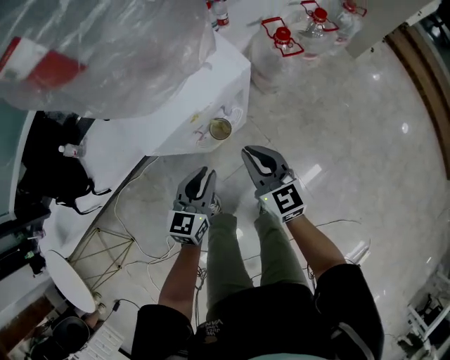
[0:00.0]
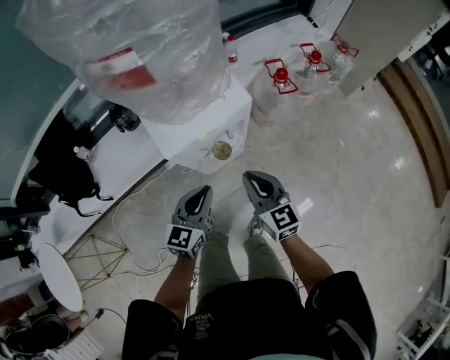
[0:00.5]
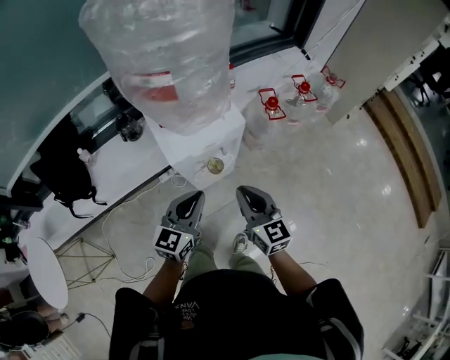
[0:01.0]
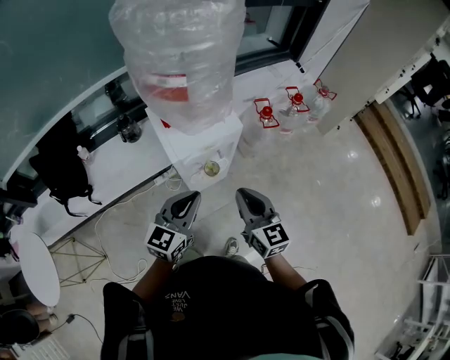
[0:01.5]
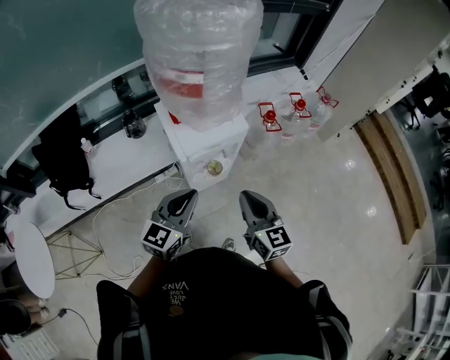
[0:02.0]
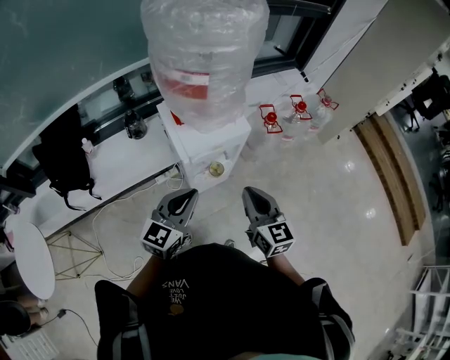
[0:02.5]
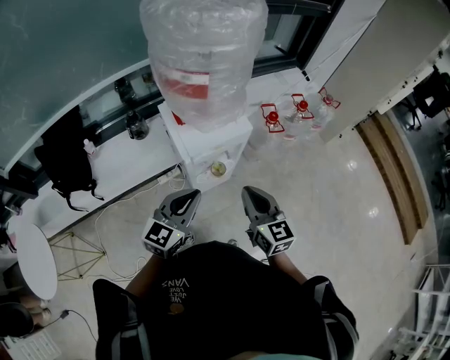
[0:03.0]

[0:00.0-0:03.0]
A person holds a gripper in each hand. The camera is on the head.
0:00.0 to 0:01.5: The right gripper moves upward and backward, approximately 25 cm. Meanwhile the left gripper travels upward by roughly 25 cm.
0:01.5 to 0:03.0: The grippers make only small movements.

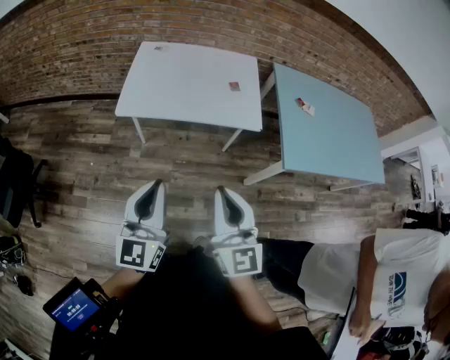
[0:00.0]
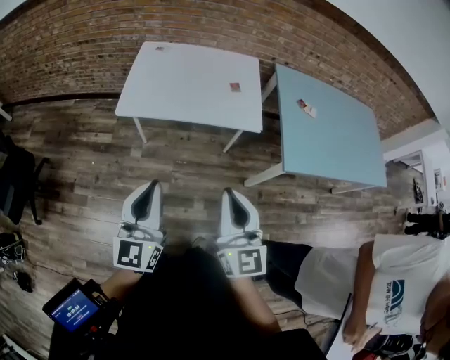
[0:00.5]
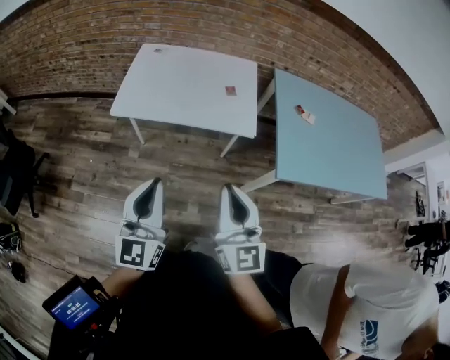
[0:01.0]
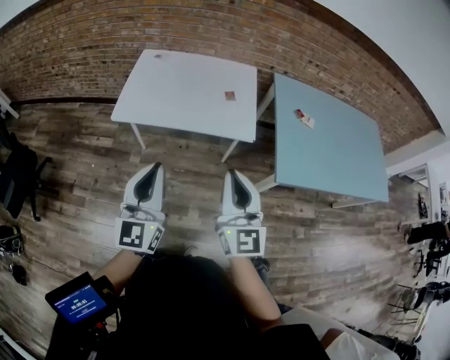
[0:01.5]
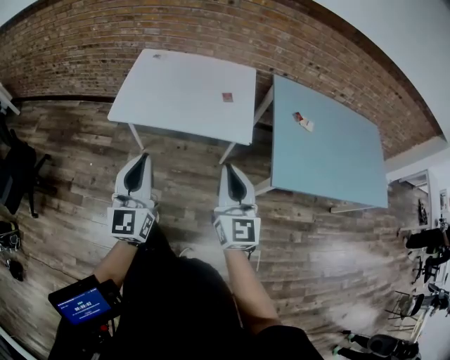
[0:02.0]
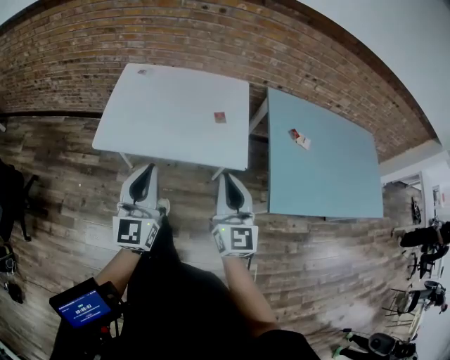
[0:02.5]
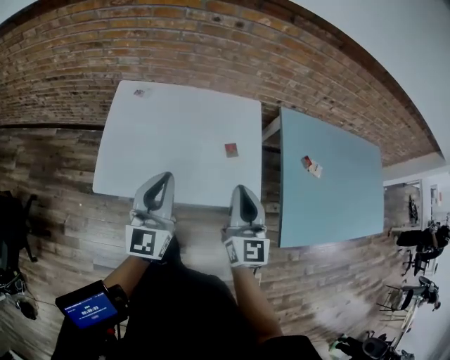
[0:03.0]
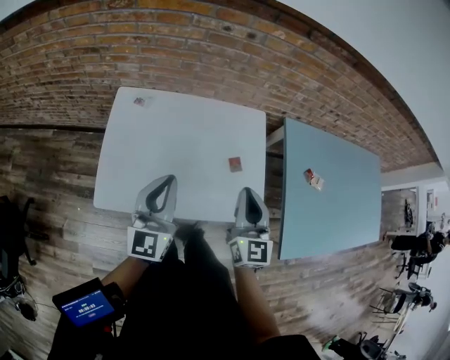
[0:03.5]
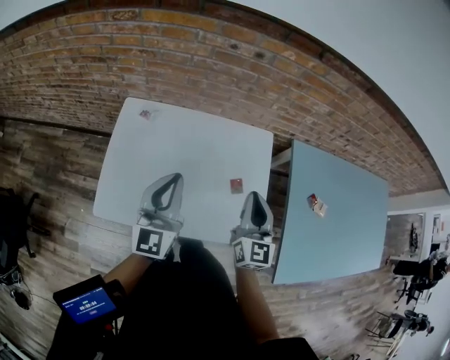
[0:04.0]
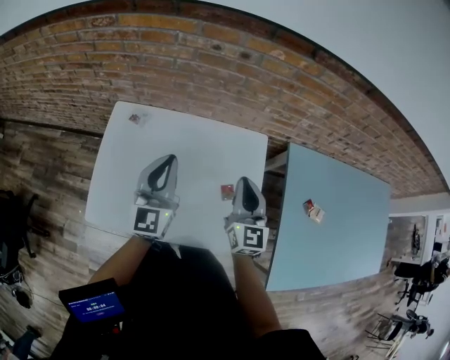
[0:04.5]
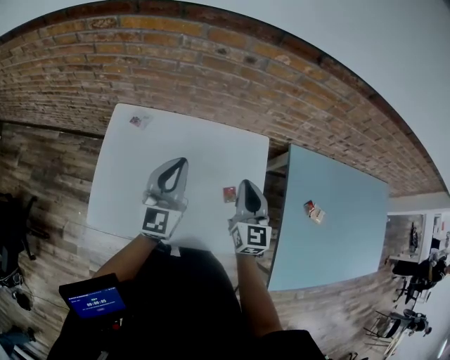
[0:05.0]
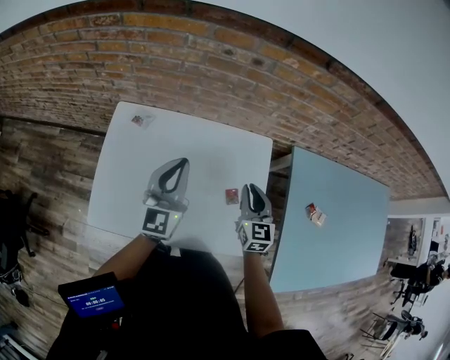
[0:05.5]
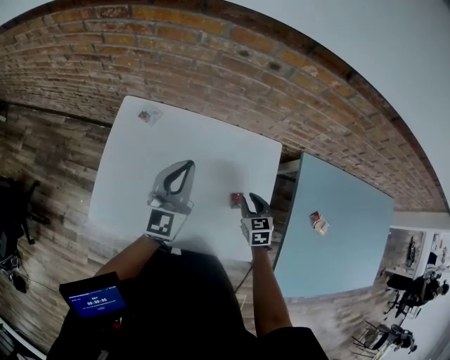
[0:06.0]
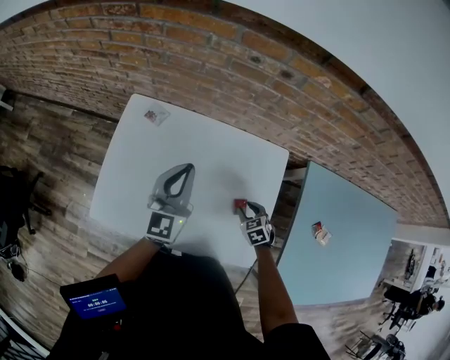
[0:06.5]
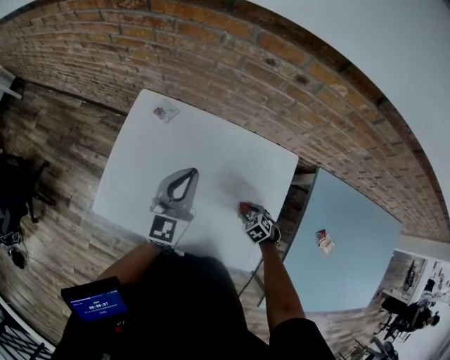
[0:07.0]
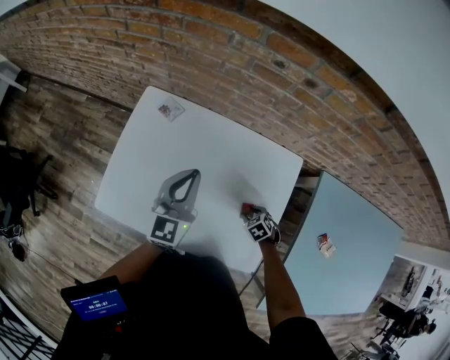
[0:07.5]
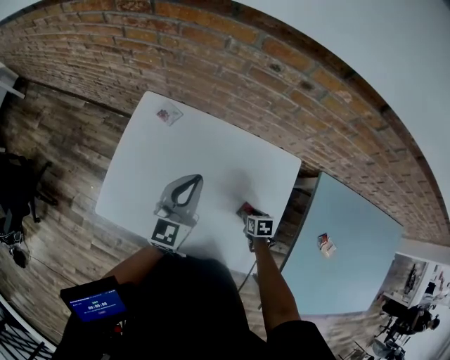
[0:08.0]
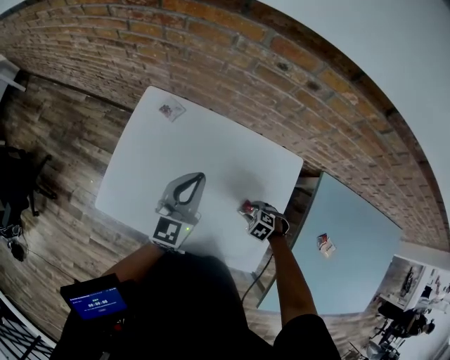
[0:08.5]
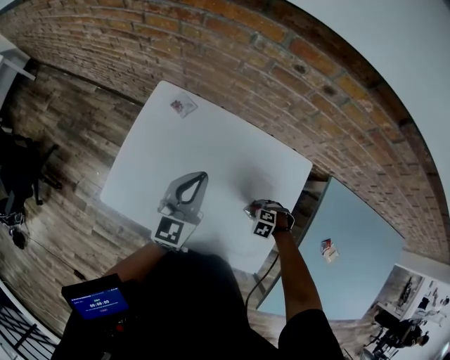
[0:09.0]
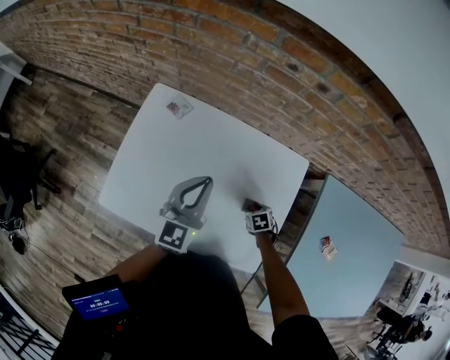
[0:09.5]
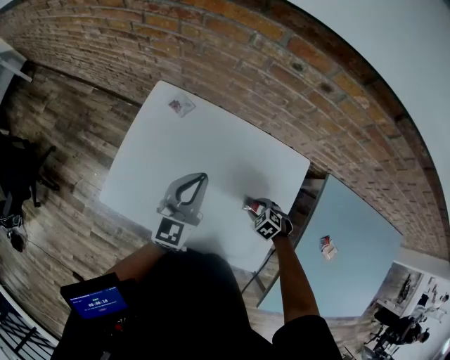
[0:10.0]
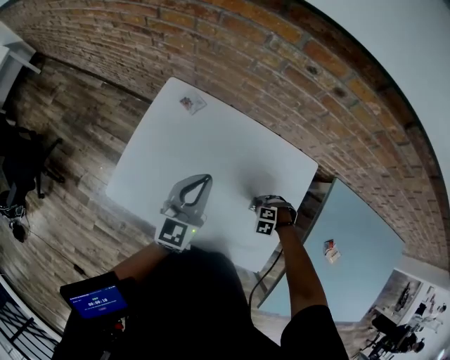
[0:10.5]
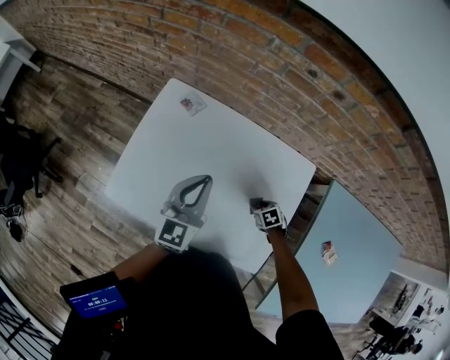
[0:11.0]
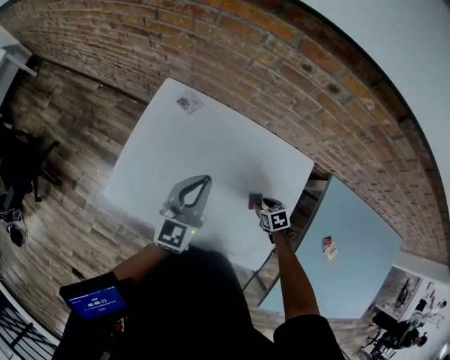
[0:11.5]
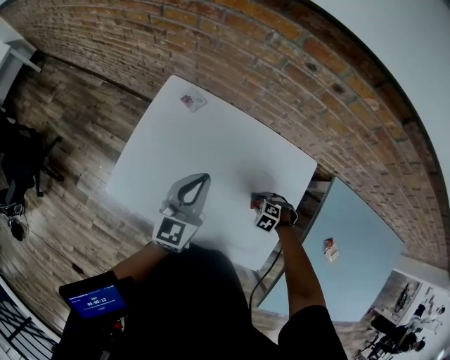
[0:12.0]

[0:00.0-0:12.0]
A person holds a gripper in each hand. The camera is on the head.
0:00.0 to 0:02.0: The left gripper heads forward and to the right, covering some 10 cm. Meanwhile the right gripper goes approximately 15 cm to the right and forward.
0:02.0 to 0:04.0: The two grippers travel together, forward, approximately 40 cm.
0:04.0 to 0:06.0: The left gripper shifts about 15 cm forward and downward. Meanwhile the right gripper moves downward and forward, approximately 25 cm, points its fingers roughly 40 degrees further downward, and opens its fingers.
0:06.0 to 0:08.0: The right gripper goes about 15 cm downward, and swivels approximately 30 degrees.
0:08.0 to 0:10.0: The right gripper rolls counterclockwise, seen from behind, by some 60 degrees.
0:10.0 to 0:12.0: The right gripper turns by roughly 20 degrees.

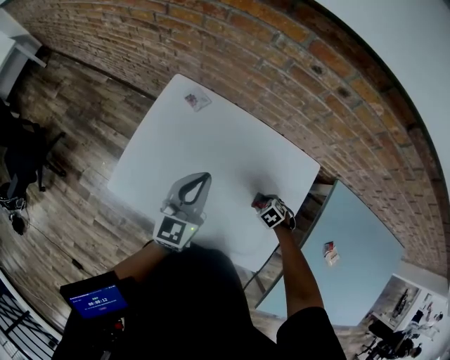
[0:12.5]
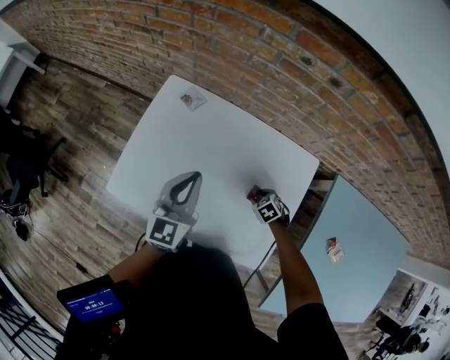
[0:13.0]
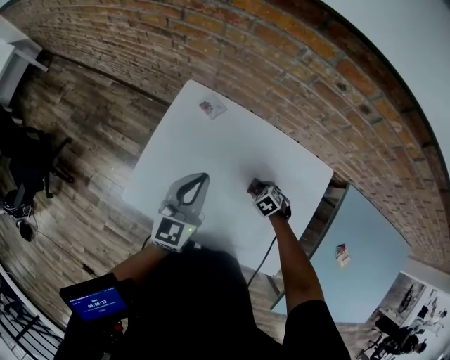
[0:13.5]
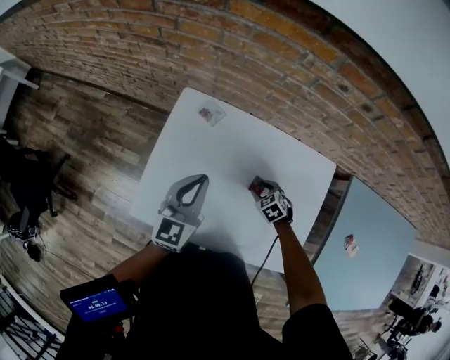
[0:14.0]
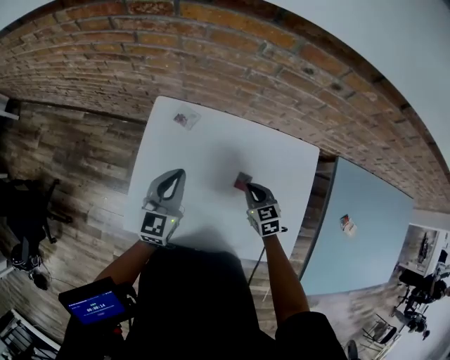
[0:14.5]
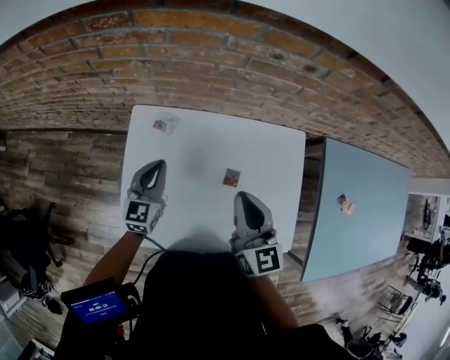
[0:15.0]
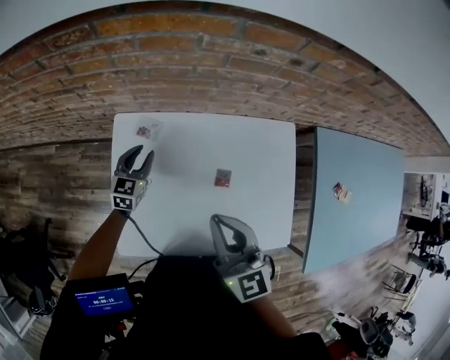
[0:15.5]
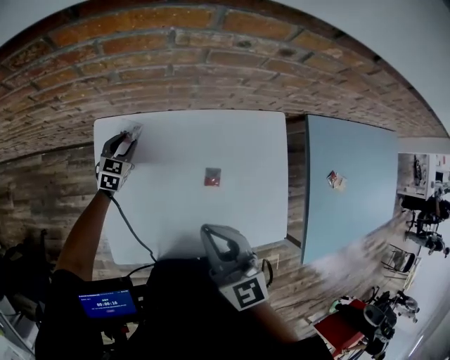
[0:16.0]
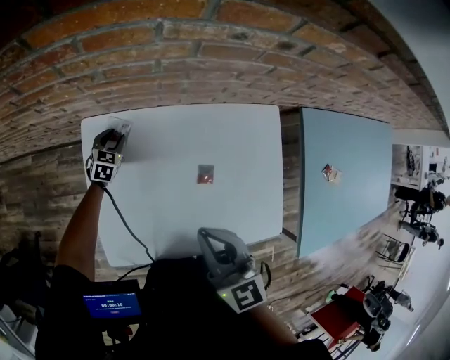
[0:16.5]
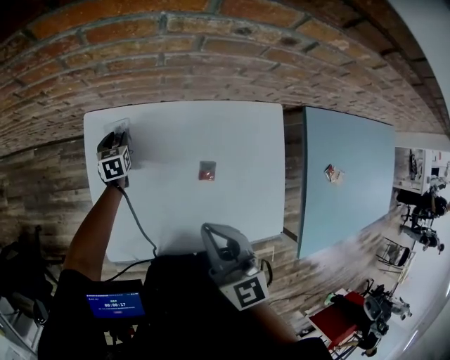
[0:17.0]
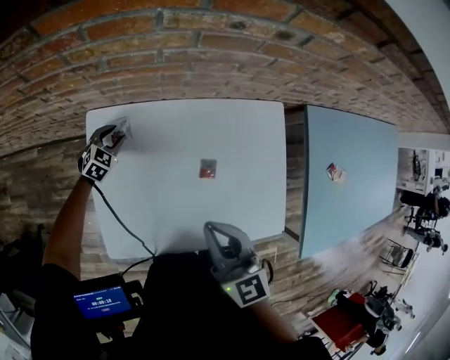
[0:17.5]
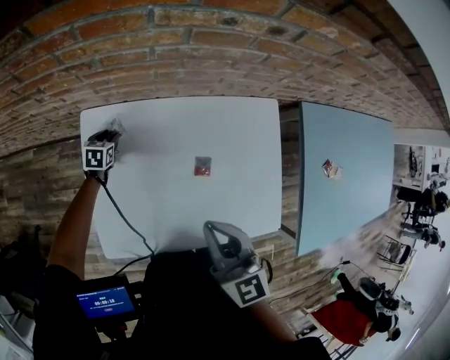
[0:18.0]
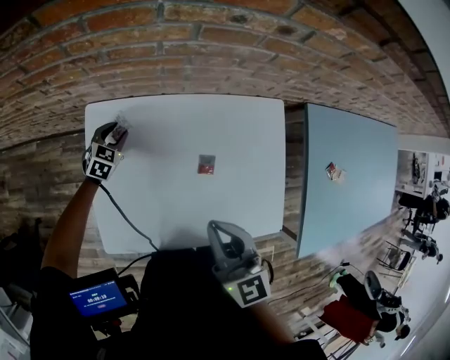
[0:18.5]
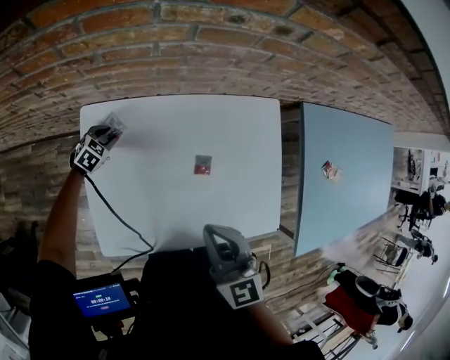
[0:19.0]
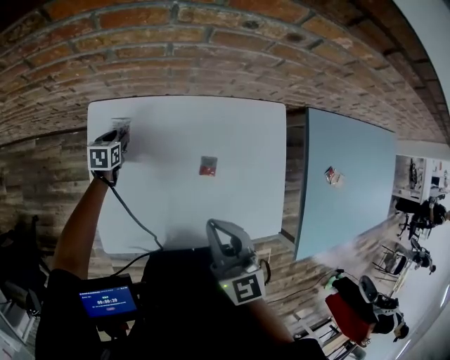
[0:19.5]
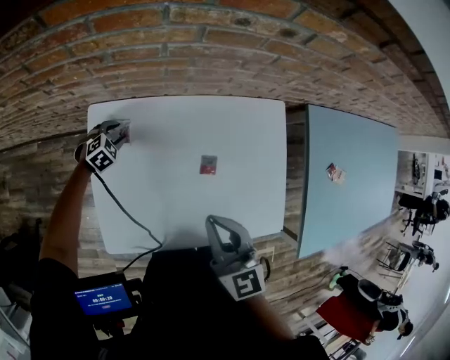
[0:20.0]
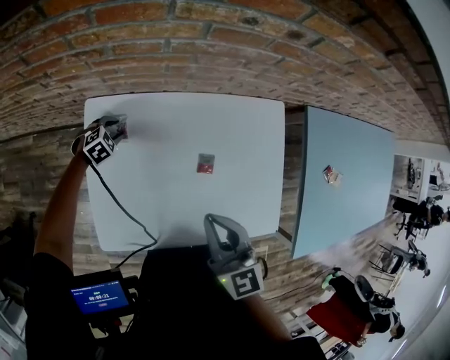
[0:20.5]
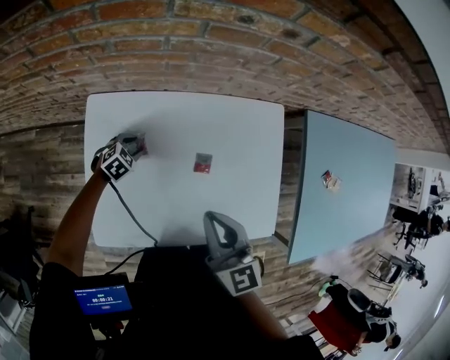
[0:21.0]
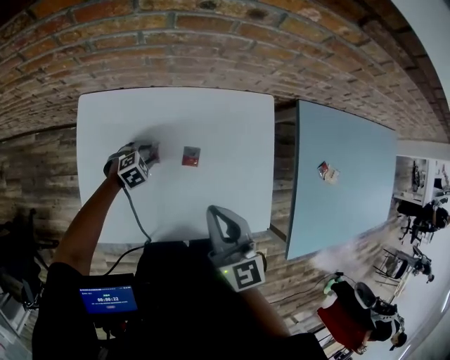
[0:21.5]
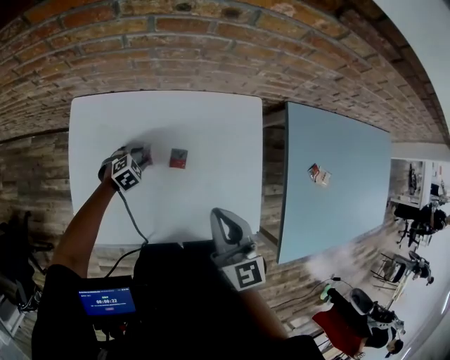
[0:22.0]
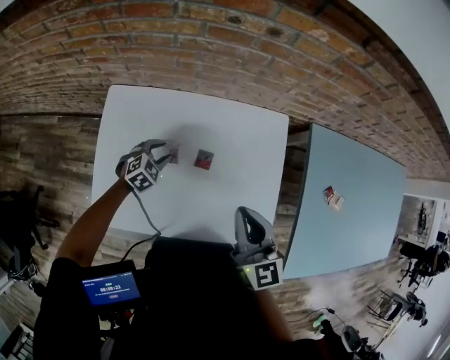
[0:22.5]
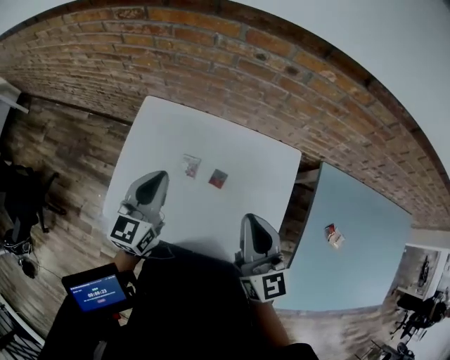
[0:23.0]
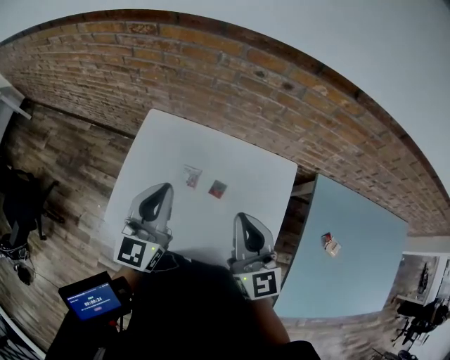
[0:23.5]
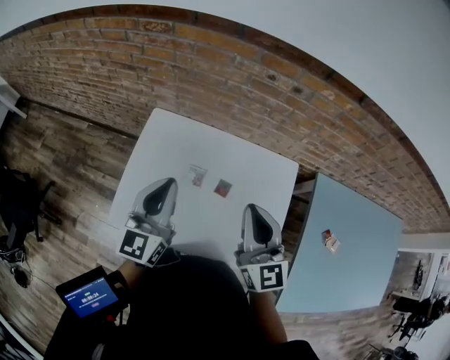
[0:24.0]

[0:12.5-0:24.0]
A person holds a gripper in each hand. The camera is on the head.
0:12.5 to 0:14.5: The right gripper ends up approximately 25 cm from where it was, angles its fingers upward, by approximately 40 degrees, and closes its fingers. The left gripper changes place by approximately 15 cm.
0:14.5 to 0:16.5: The right gripper heads upward, covering some 25 cm, and rotates some 30 degrees, while the left gripper heads downward and forward, covering roughly 30 cm, tips its fingers downward by approximately 30 degrees, and opens up.
0:16.5 to 0:18.5: The left gripper moves some 5 cm.
0:18.5 to 0:20.0: The left gripper turns by roughly 30 degrees.
0:20.0 to 0:22.0: The right gripper is displaced to the right by some 10 cm. Meanwhile the left gripper shifts approximately 20 cm to the right.
0:22.0 to 0:24.0: The right gripper moves upward, some 10 cm, while the left gripper is displaced upward by approximately 40 cm, tips its fingers upward by some 70 degrees, and closes its fingers.
